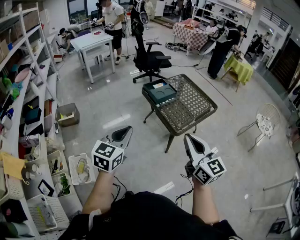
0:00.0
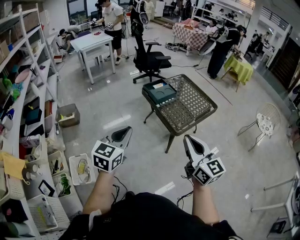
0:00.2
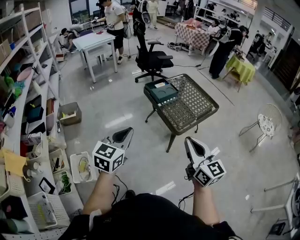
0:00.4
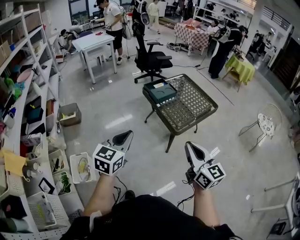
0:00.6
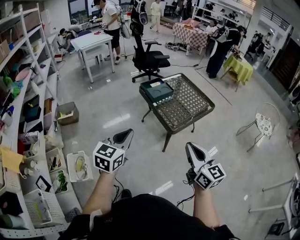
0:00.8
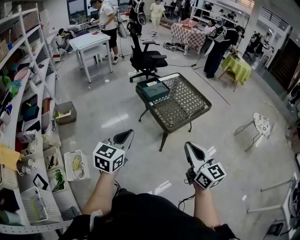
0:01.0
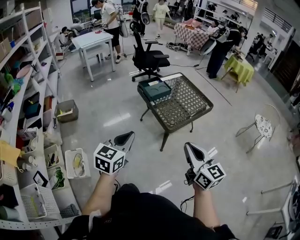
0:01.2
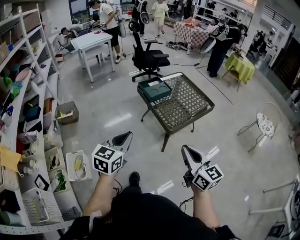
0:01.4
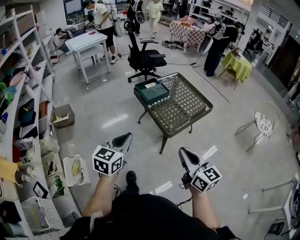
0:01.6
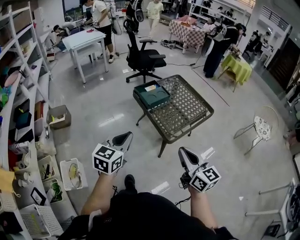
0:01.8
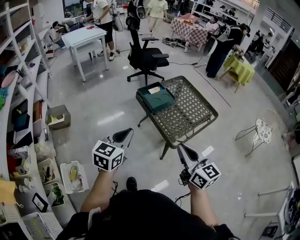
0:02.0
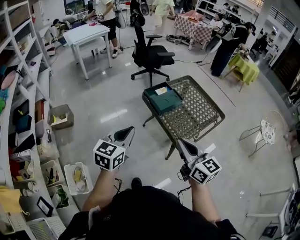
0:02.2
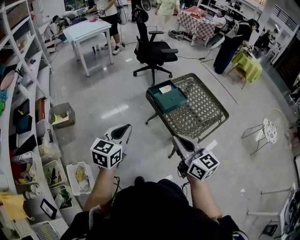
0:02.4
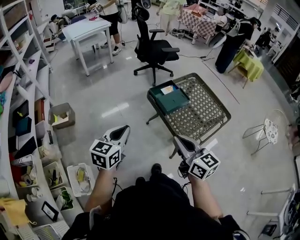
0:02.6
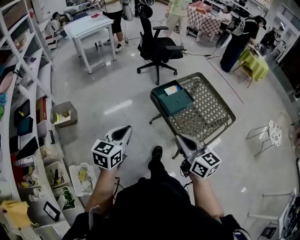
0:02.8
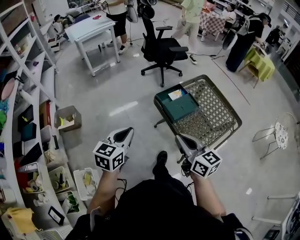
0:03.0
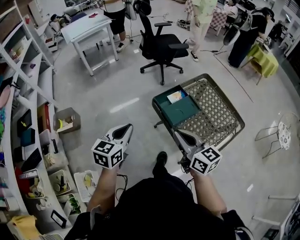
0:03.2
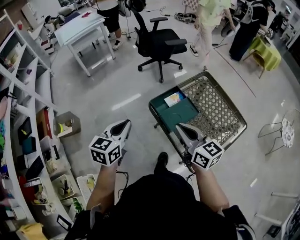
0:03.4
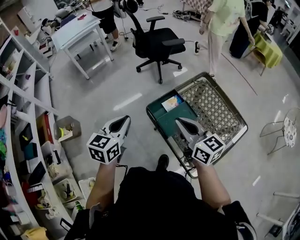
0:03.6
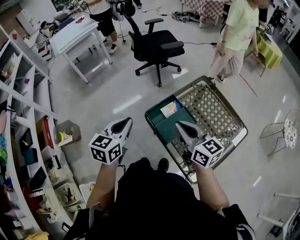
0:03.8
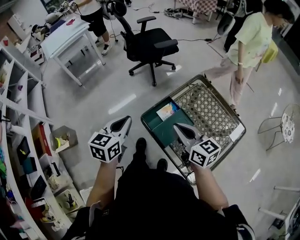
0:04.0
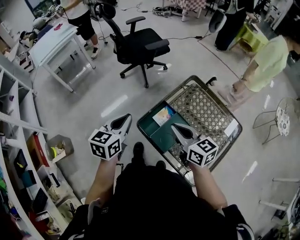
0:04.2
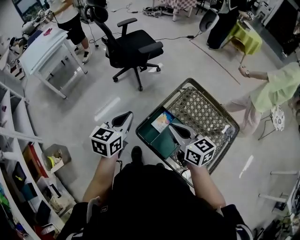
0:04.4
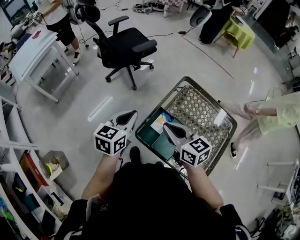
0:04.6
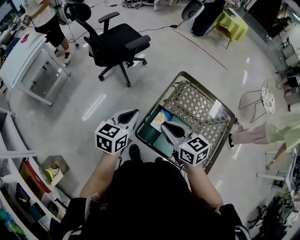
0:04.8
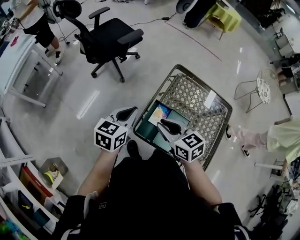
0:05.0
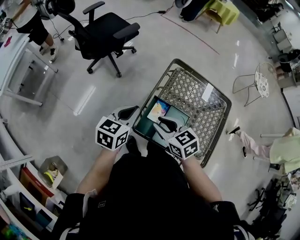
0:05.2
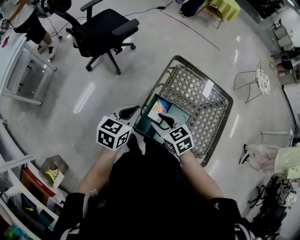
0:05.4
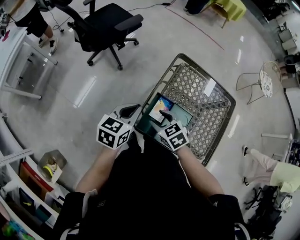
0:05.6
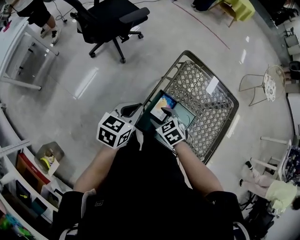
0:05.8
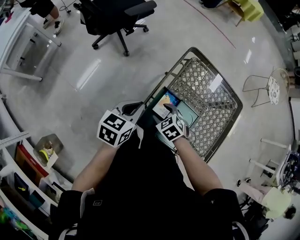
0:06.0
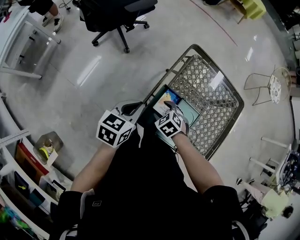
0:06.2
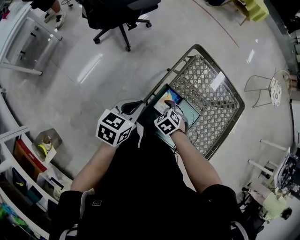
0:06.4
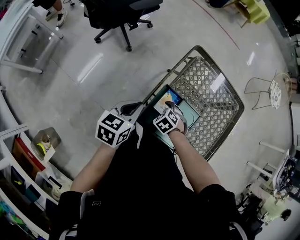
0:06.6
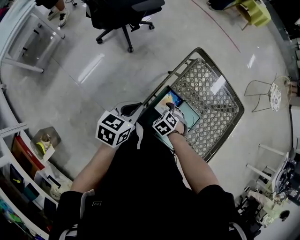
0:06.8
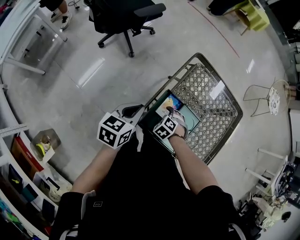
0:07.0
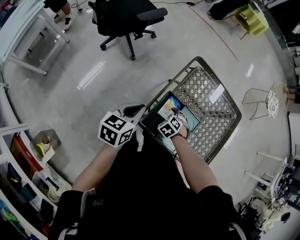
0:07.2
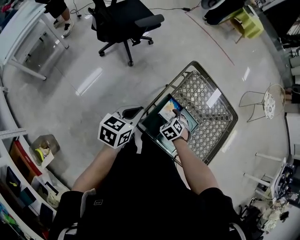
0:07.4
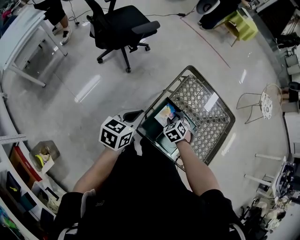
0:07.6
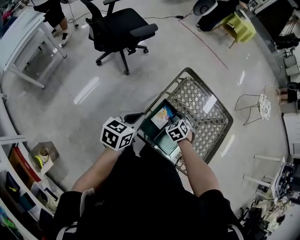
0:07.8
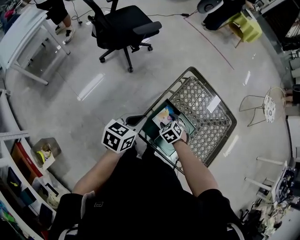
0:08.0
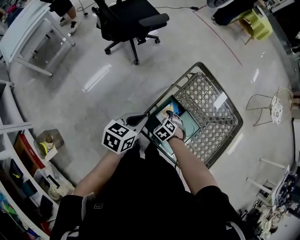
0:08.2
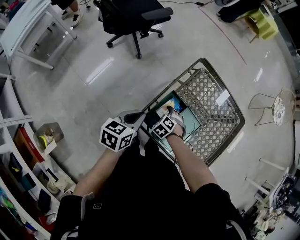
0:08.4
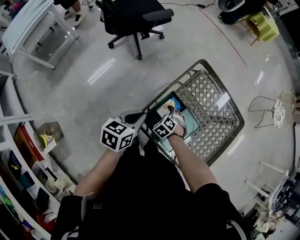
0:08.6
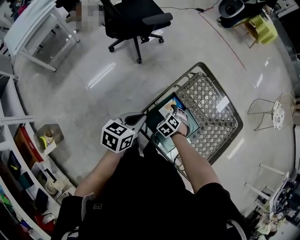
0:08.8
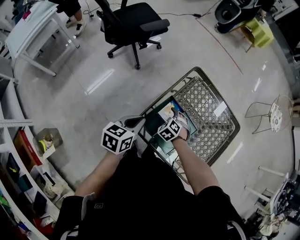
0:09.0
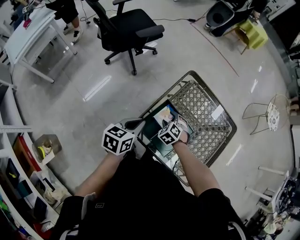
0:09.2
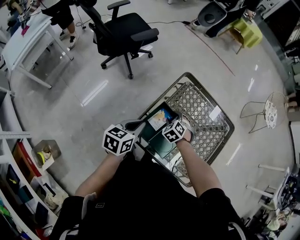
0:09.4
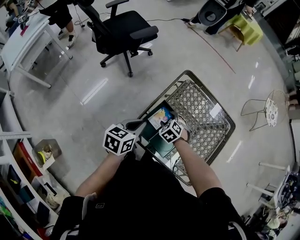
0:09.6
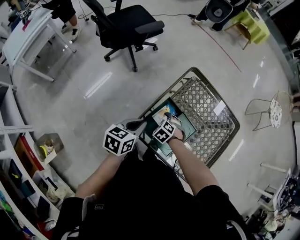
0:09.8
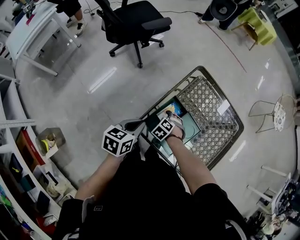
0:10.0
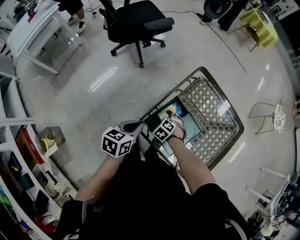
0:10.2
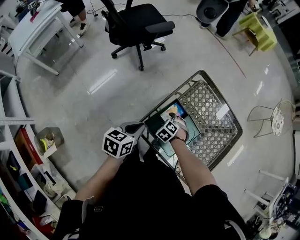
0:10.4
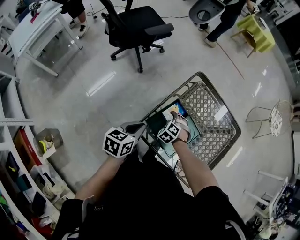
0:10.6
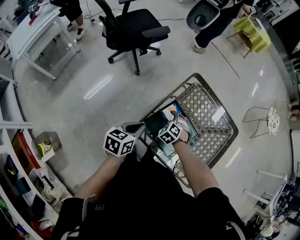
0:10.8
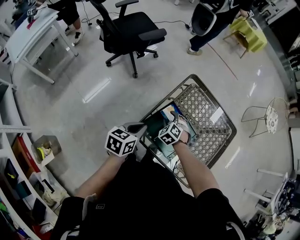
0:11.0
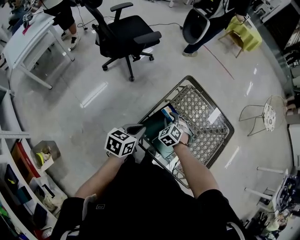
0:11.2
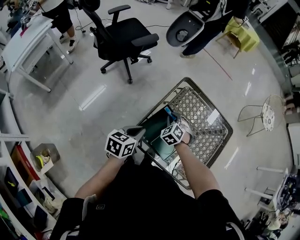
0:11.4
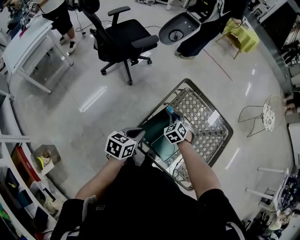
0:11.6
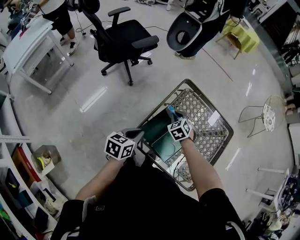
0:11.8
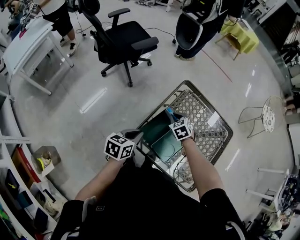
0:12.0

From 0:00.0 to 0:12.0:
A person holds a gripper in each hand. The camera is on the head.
From 0:00.0 to 0:01.6: The right gripper shifts some 10 cm downward and to the right. Meanwhile the left gripper goes roughly 10 cm to the right and downward.
From 0:01.6 to 0:03.0: The grippers both shift forward and to the left by some 35 cm.
From 0:03.0 to 0:04.4: Both grippers travel together forward, some 35 cm.
From 0:04.4 to 0:06.0: The right gripper is displaced downward by approximately 25 cm, angles its fingers downward, by roughly 50 degrees, and opens up; the left gripper heads downward and forward, covering approximately 15 cm, and turns by some 30 degrees.
From 0:06.0 to 0:07.6: The right gripper goes downward and returns, about 10 cm each way.
From 0:07.6 to 0:09.0: The right gripper goes downward and returns, some 5 cm each way, and opens.
From 0:10.4 to 0:12.0: The right gripper goes about 15 cm upward and forward, rotates some 30 degrees, and closes.

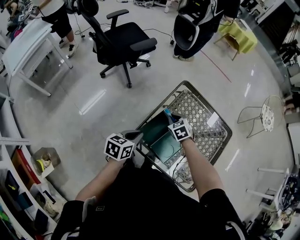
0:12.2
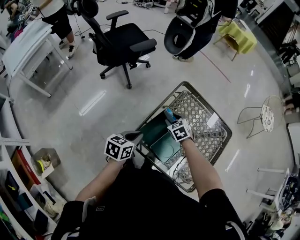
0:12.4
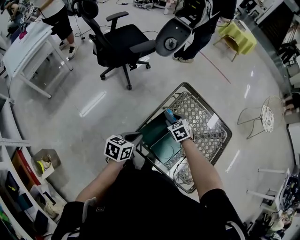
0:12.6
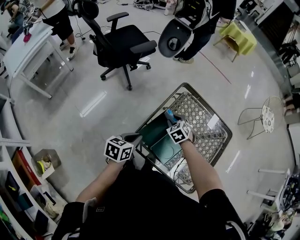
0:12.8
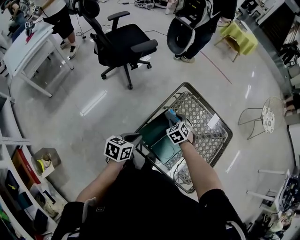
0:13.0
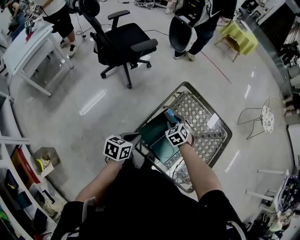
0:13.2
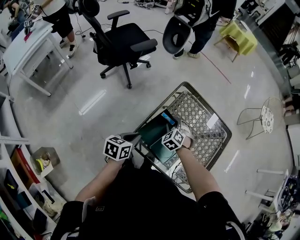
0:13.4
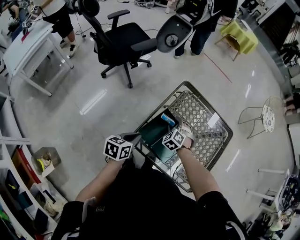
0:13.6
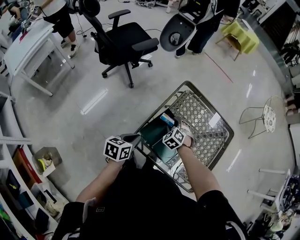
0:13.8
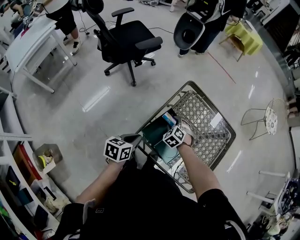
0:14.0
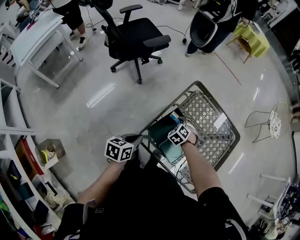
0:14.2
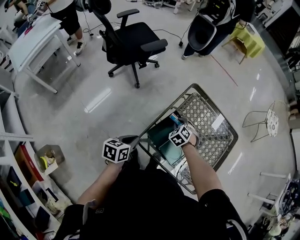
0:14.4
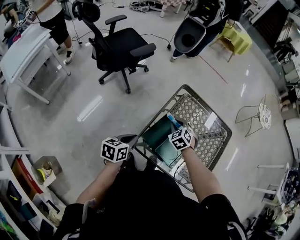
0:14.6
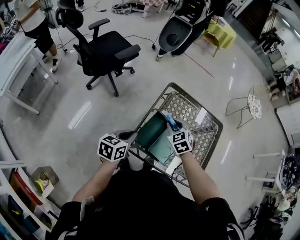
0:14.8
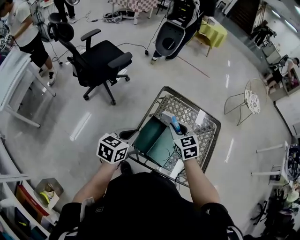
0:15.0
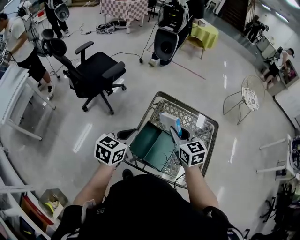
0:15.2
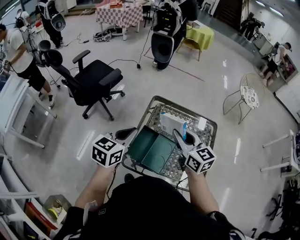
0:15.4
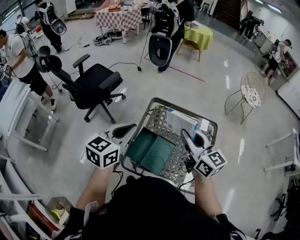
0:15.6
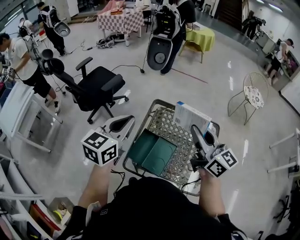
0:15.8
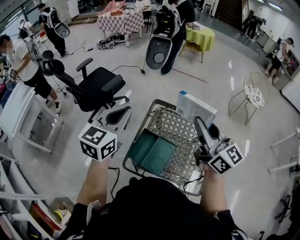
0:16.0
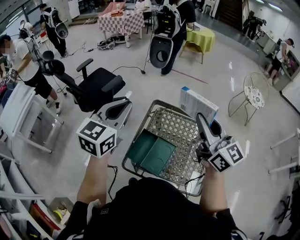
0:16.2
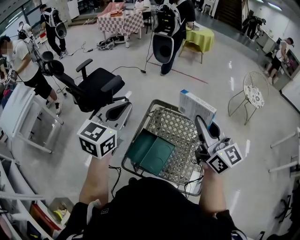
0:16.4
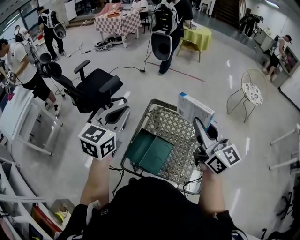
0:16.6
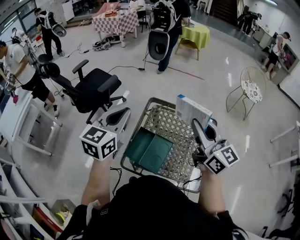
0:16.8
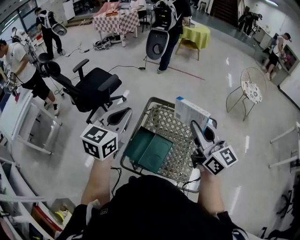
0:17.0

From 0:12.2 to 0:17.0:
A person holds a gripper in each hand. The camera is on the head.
From 0:12.2 to 0:13.8: The right gripper rotates roughly 30 degrees, and opens up.
From 0:13.8 to 0:15.4: The right gripper goes some 30 cm upward, and angles its fingers upward, by about 50 degrees; the left gripper is displaced upward and forward by approximately 20 cm, and rotates about 30 degrees.
From 0:15.4 to 0:17.0: The right gripper travels upward and to the right by roughly 15 cm; the left gripper moves upward, some 10 cm.

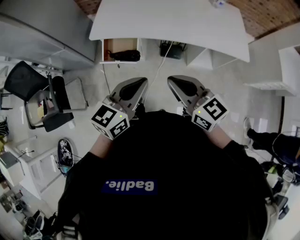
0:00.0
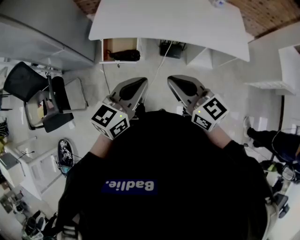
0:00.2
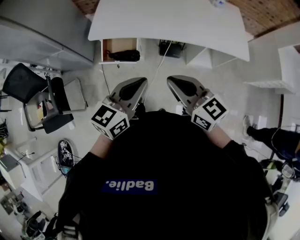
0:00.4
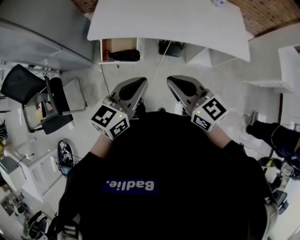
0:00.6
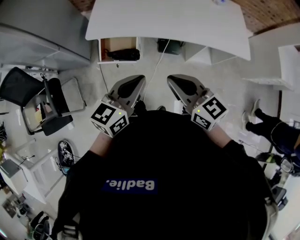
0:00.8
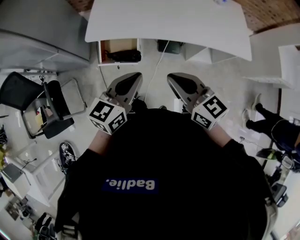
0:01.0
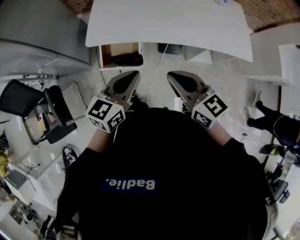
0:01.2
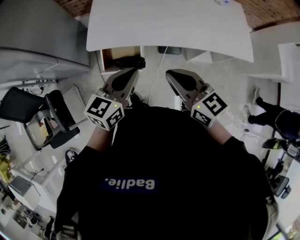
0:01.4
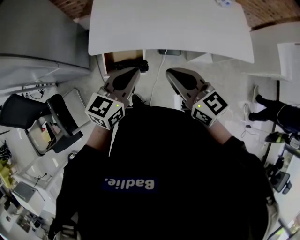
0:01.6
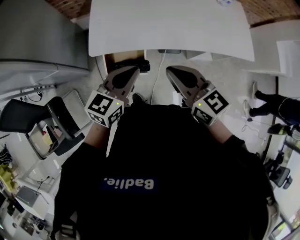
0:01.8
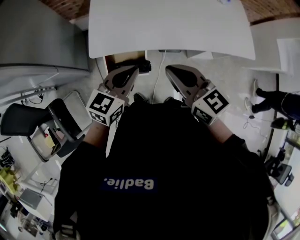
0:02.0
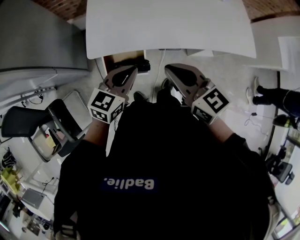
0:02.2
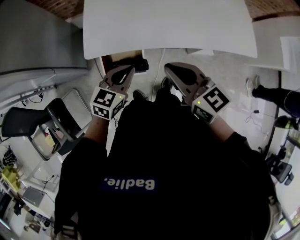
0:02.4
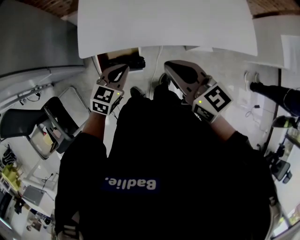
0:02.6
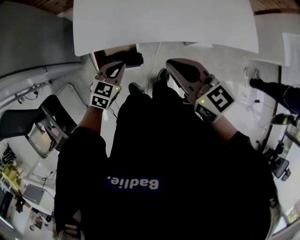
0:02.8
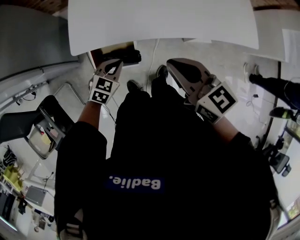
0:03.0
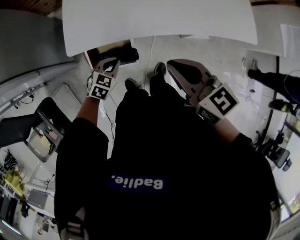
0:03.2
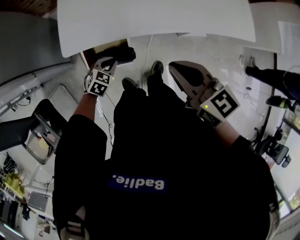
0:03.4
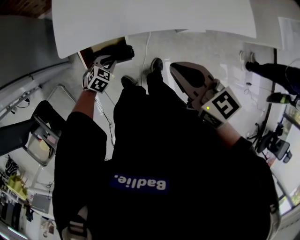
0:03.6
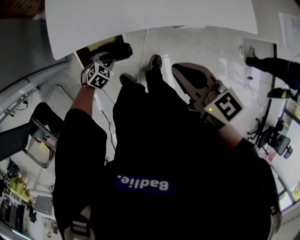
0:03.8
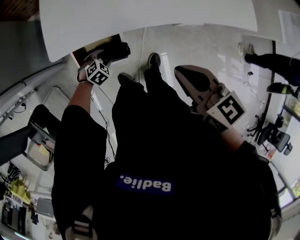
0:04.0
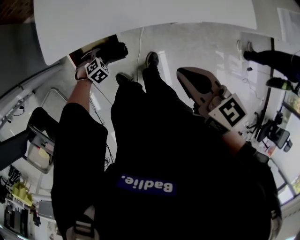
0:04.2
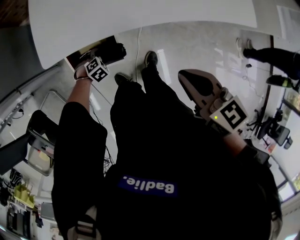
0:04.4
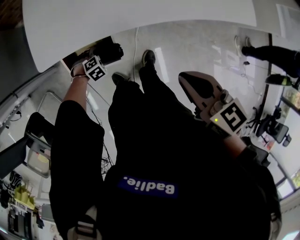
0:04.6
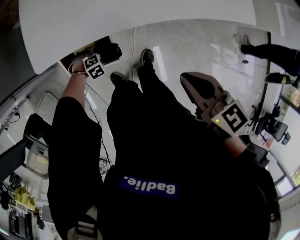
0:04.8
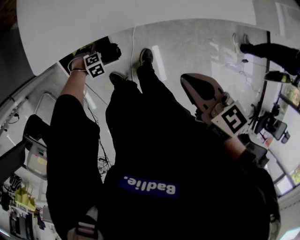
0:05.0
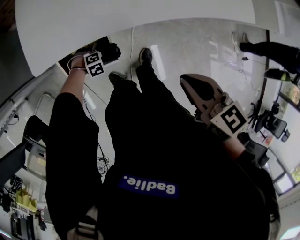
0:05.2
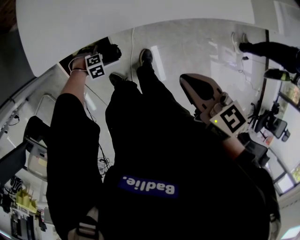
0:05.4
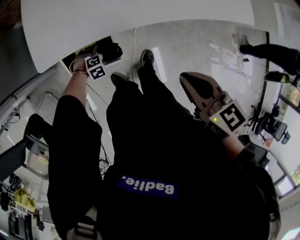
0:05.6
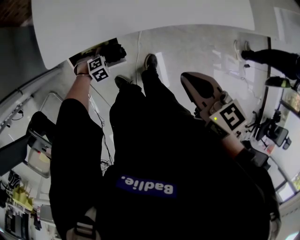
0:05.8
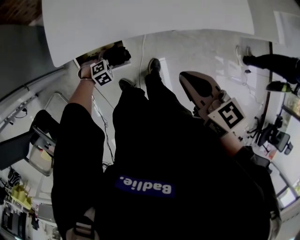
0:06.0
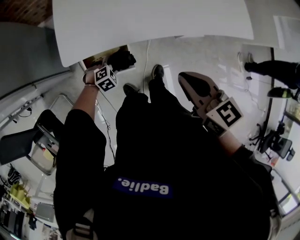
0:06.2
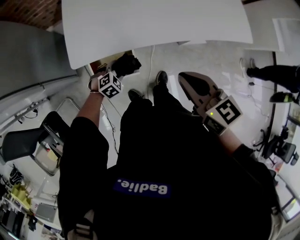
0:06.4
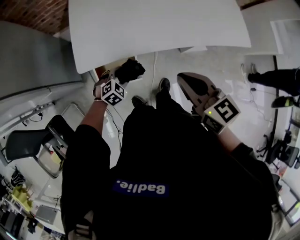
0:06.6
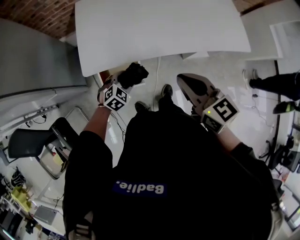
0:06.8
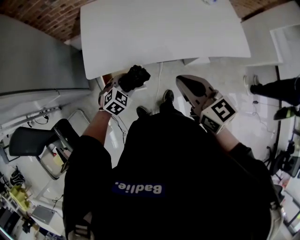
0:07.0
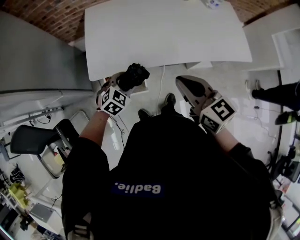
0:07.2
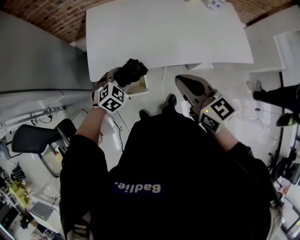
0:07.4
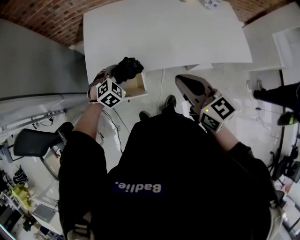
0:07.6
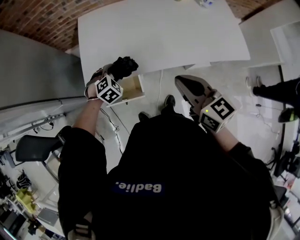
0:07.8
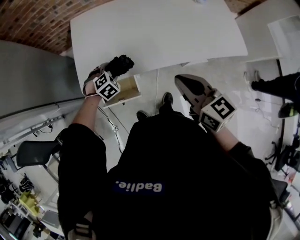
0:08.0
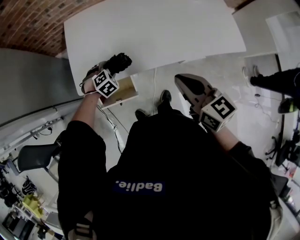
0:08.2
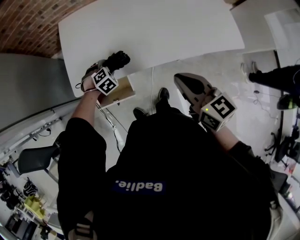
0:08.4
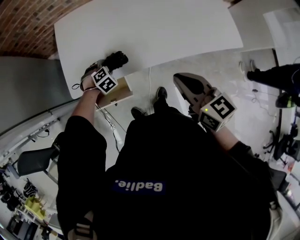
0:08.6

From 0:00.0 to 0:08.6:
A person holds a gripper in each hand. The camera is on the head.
From 0:00.0 to 0:01.4: Both grippers move forward and to the left, approximately 15 cm.
From 0:01.4 to 0:02.8: The left gripper moves downward and forward, approximately 20 cm, and changes its angle by about 30 degrees, while the right gripper shifts approximately 10 cm forward.
From 0:02.8 to 0:04.4: The right gripper heads downward, covering some 10 cm, while the left gripper heads downward, covering roughly 30 cm, angles its fingers downward, by approximately 40 degrees, and opens up.
From 0:05.8 to 0:07.2: The right gripper is displaced upward by about 10 cm, and swivels about 20 degrees; the left gripper is displaced upward by some 30 cm, and rotates roughly 40 degrees.
From 0:07.2 to 0:08.6: The right gripper shifts approximately 10 cm to the right. Meanwhile the left gripper moves forward and downward, roughly 20 cm, and rotates some 30 degrees.
